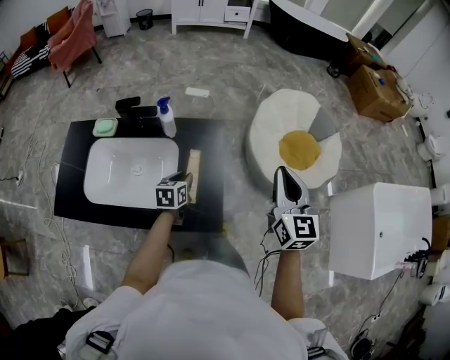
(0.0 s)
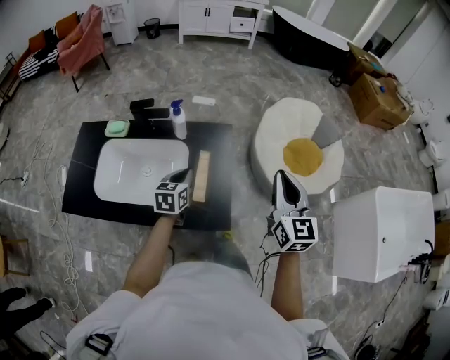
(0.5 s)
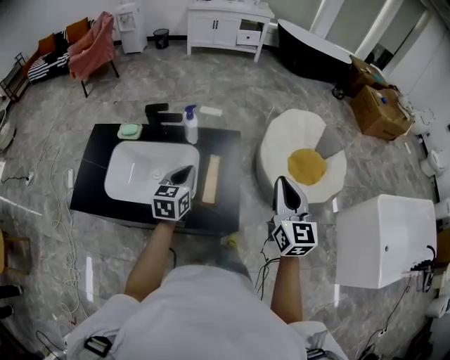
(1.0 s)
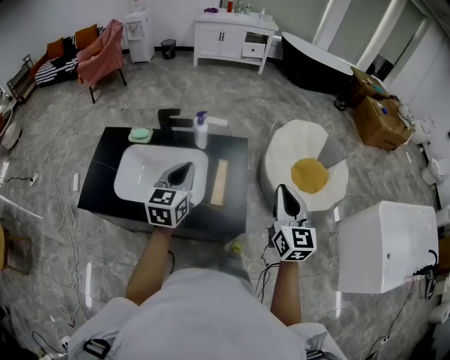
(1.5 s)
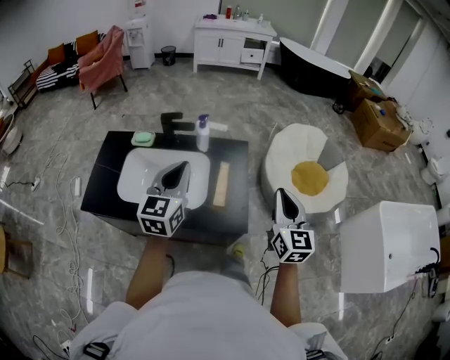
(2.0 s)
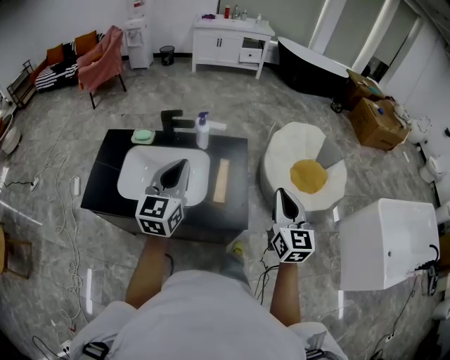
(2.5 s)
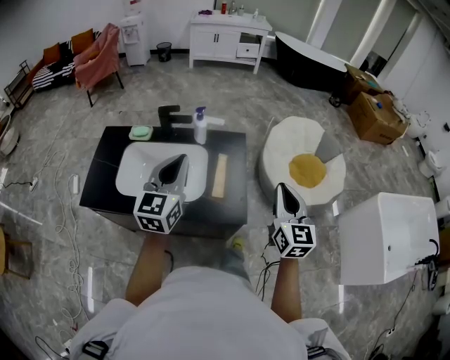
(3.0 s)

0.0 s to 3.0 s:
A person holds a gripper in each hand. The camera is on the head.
0.0 to 1.5 s: The right gripper travels backward and to the left by about 15 cm; the left gripper goes about 30 cm upward and backward, changes its angle by some 30 degrees, and closes its fingers.
1.5 to 3.0 s: The left gripper moves upward and backward, some 10 cm.

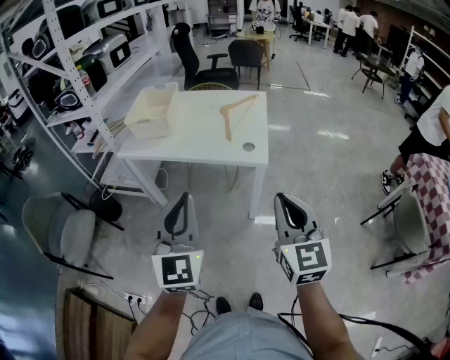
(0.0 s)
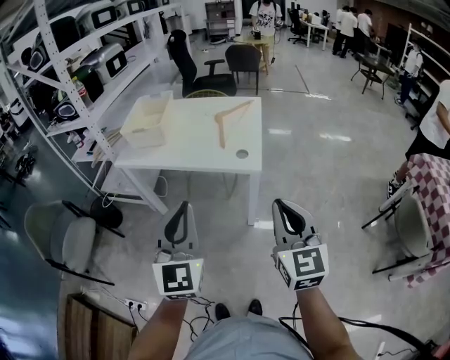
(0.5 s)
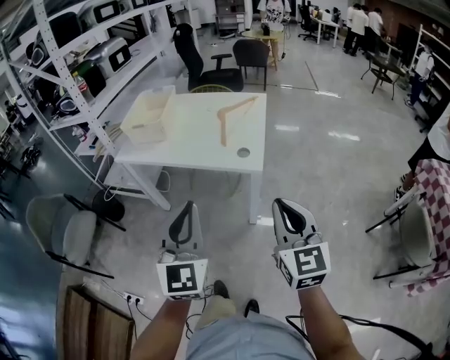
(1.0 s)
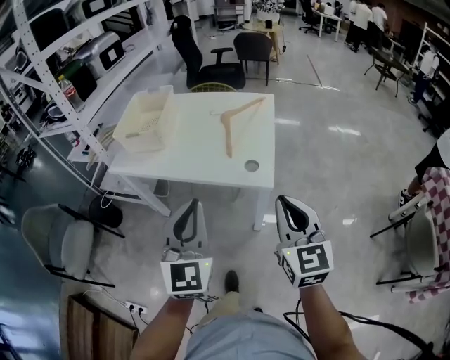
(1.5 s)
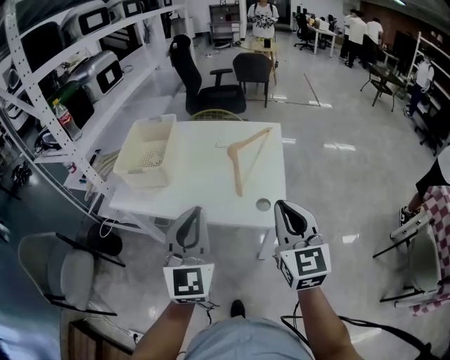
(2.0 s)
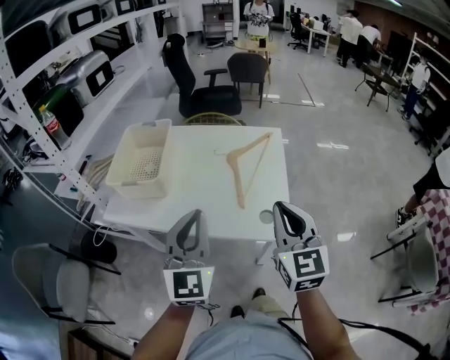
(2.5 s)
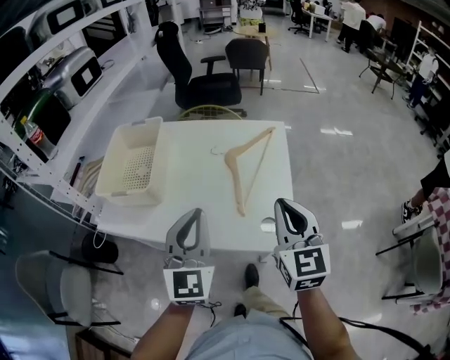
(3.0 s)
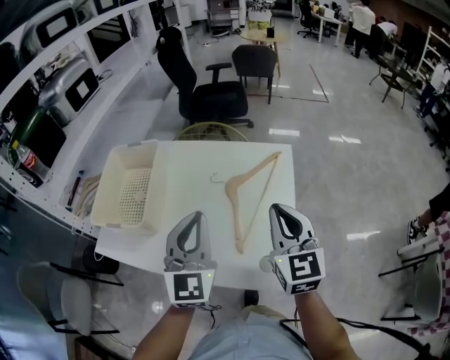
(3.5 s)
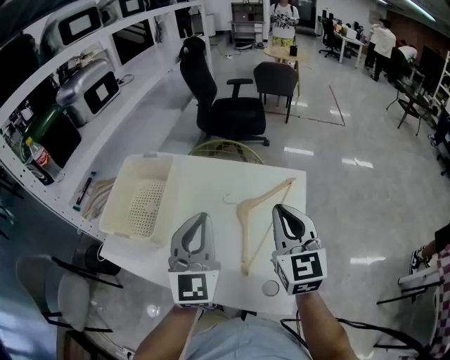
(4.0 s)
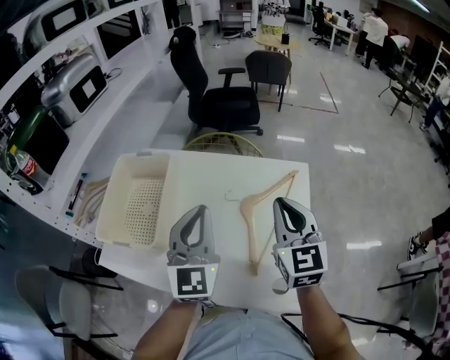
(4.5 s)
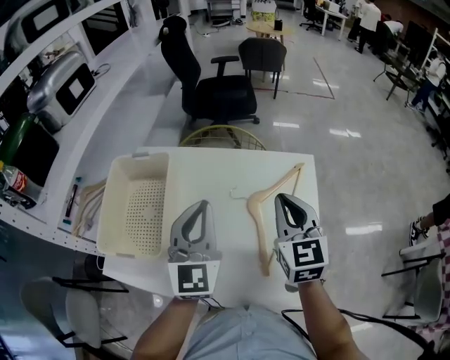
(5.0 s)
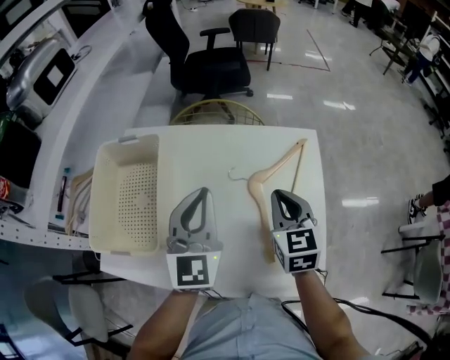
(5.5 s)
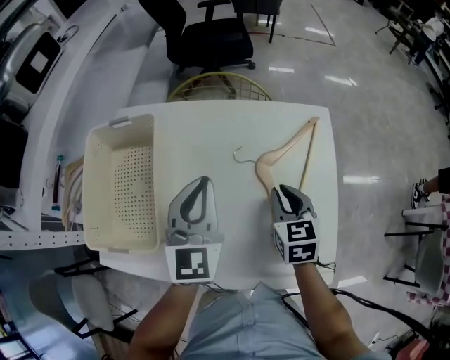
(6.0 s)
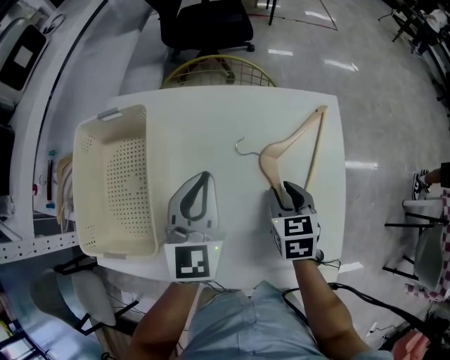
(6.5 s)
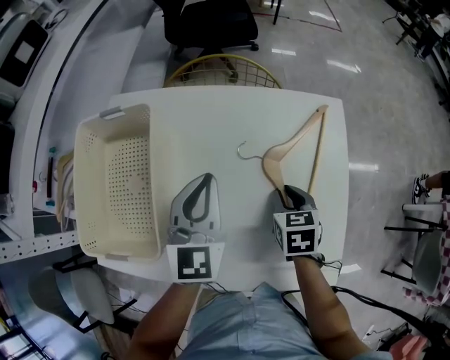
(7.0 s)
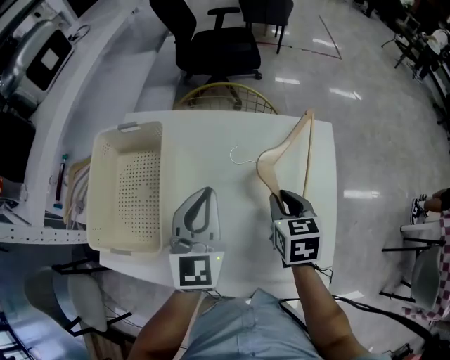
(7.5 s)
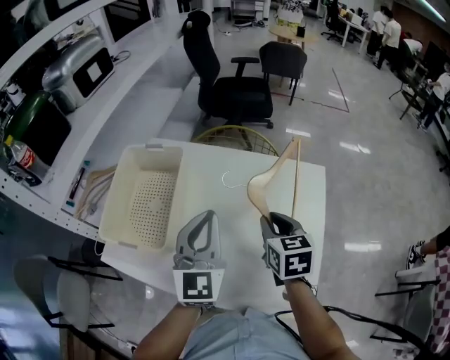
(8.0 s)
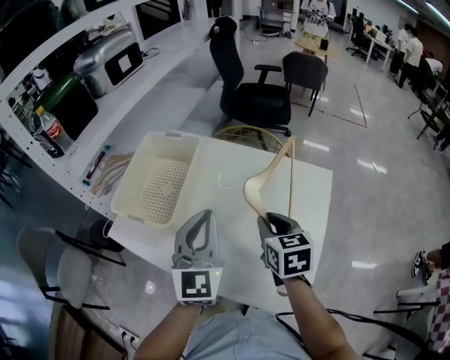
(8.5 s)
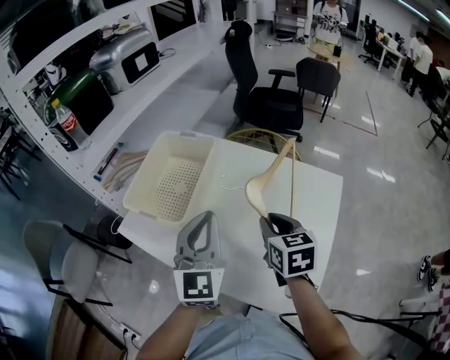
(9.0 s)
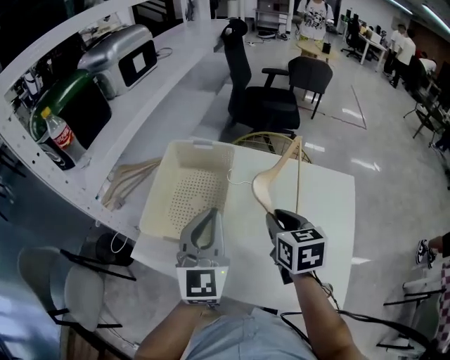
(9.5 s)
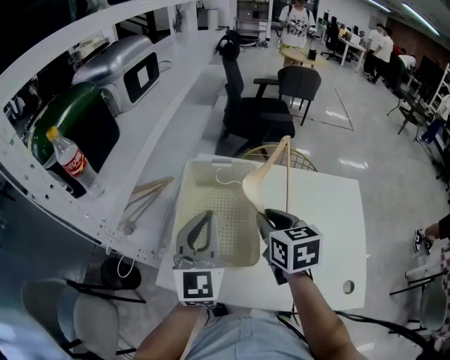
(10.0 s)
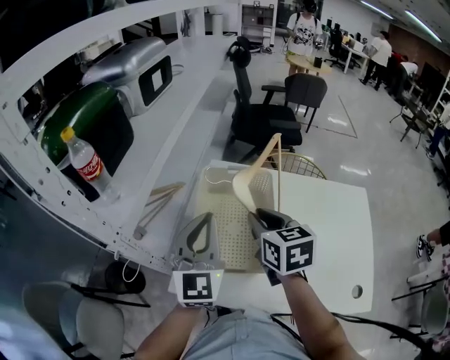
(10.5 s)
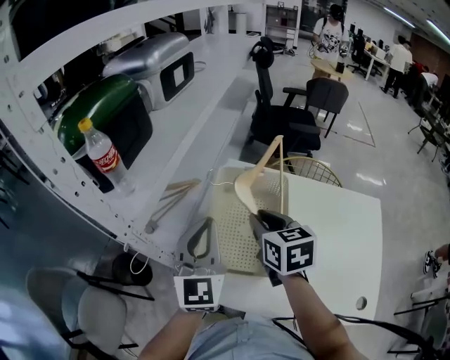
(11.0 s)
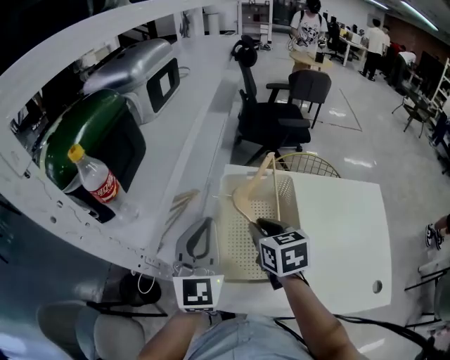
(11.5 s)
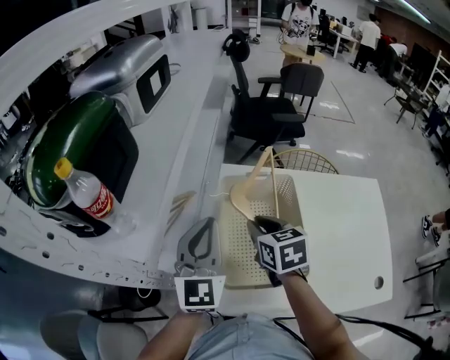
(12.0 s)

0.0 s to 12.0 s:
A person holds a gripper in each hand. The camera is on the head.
0.0 to 2.0 s: The two grippers go about 25 cm forward.
2.0 to 4.0 s: Both grippers travel together forward, about 30 cm.
4.0 to 6.0 s: The right gripper goes some 20 cm downward, and points its fingers roughly 30 degrees further downward, while the left gripper travels downward, forward and to the left by roughly 15 cm.
6.0 to 8.0 s: Both grippers move upward, about 5 cm.
8.0 to 10.0 s: Both grippers move to the left, about 25 cm.
10.0 to 12.0 s: The grippers both shift to the left and forward by about 15 cm.

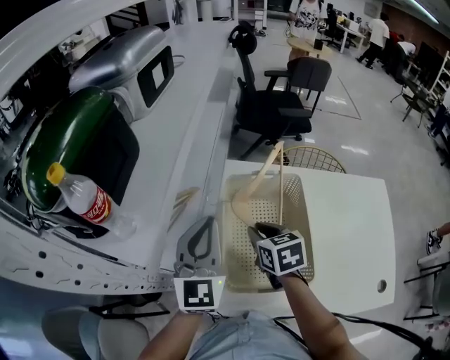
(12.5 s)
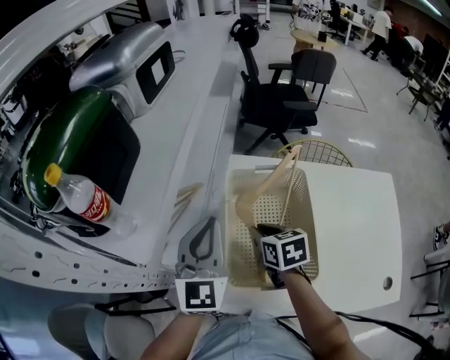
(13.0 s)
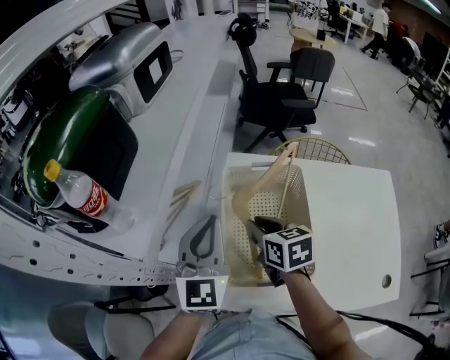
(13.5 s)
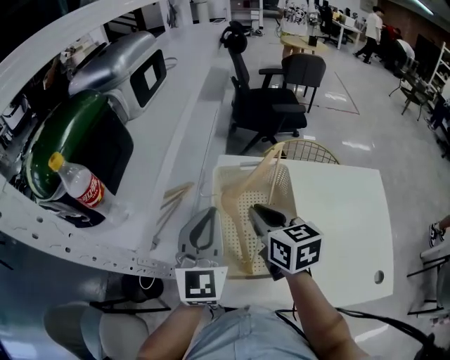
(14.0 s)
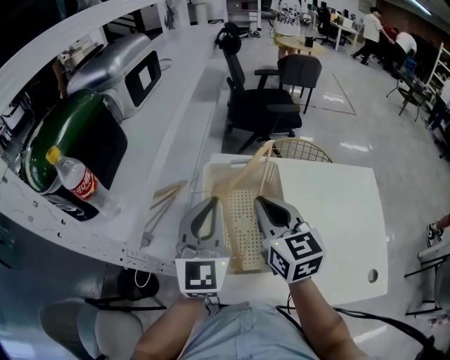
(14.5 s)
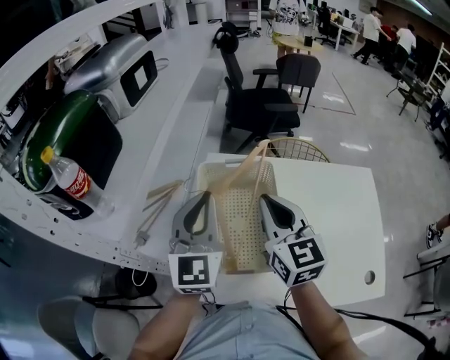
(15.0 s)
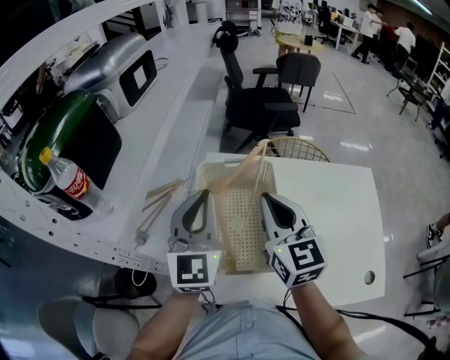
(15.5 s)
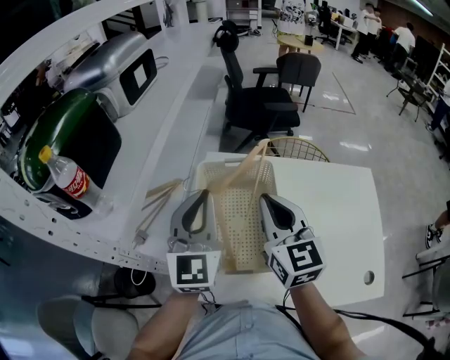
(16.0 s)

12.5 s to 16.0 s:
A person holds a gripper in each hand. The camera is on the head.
12.5 to 14.5 s: The right gripper shifts approximately 15 cm upward and to the right, and swivels some 30 degrees, while the left gripper moves to the right, roughly 5 cm.
14.5 to 16.0 s: There are only small adjustments of the grippers.

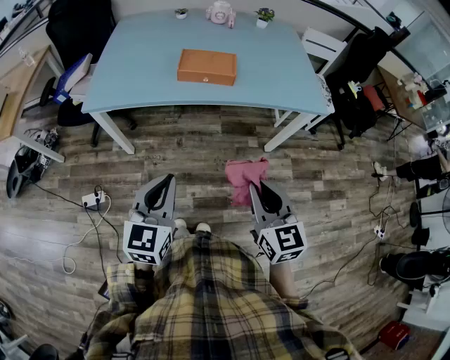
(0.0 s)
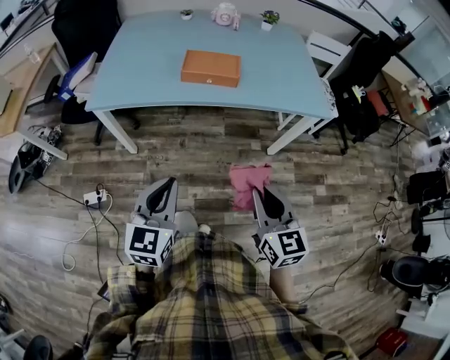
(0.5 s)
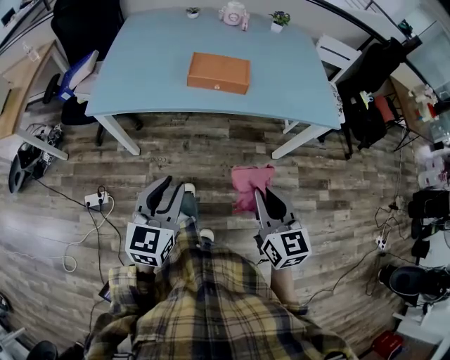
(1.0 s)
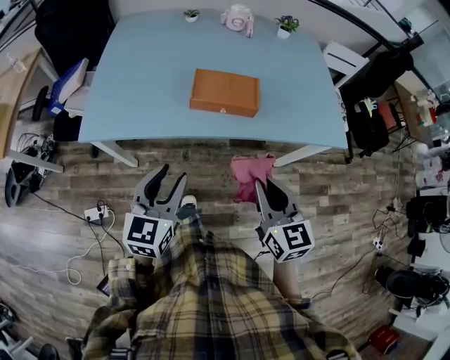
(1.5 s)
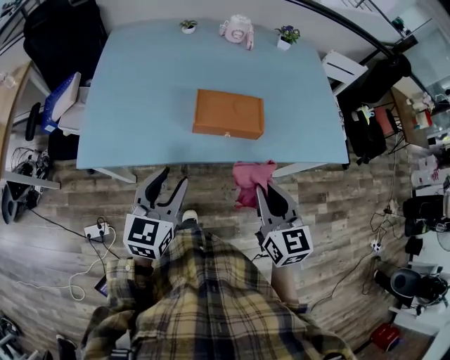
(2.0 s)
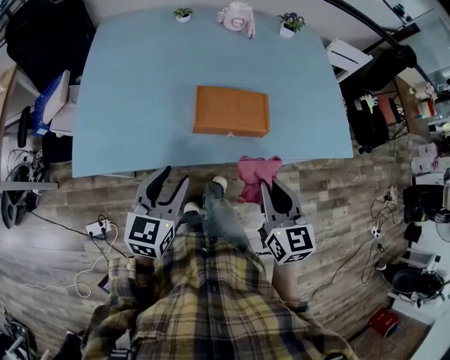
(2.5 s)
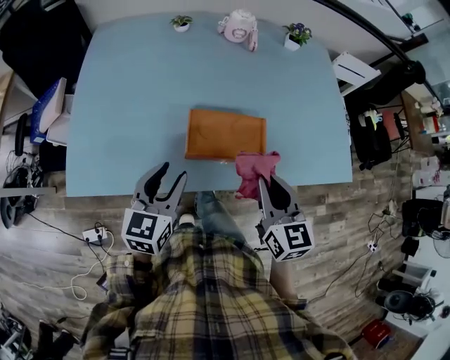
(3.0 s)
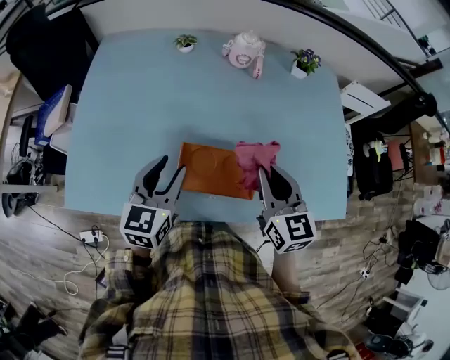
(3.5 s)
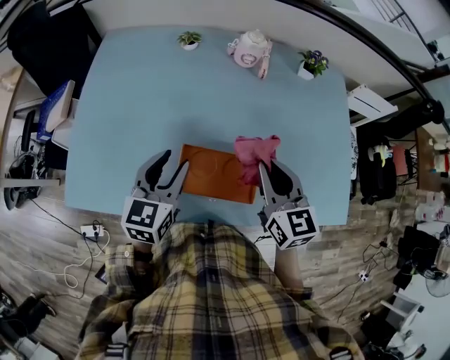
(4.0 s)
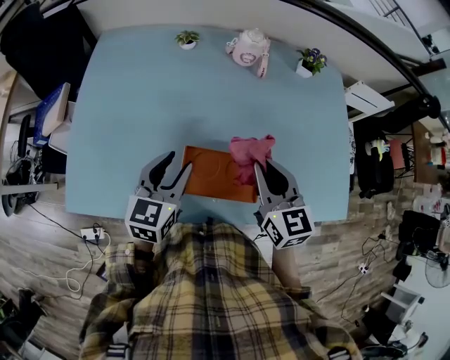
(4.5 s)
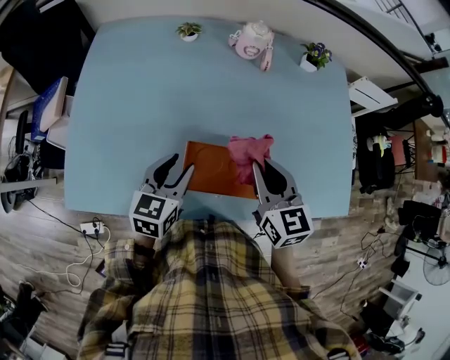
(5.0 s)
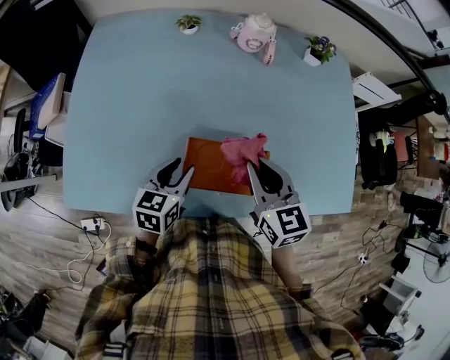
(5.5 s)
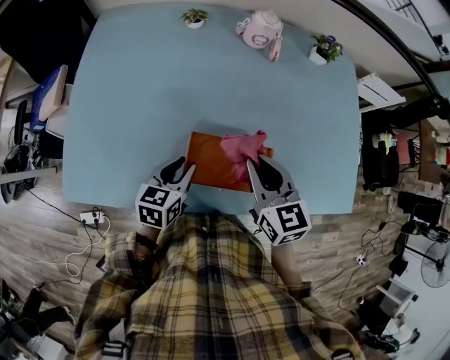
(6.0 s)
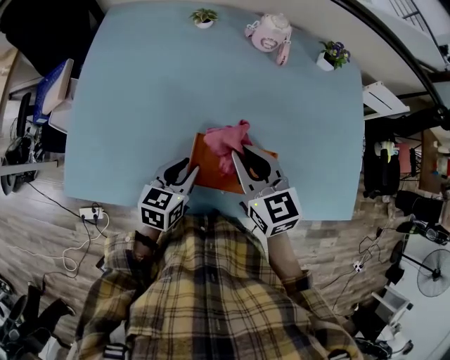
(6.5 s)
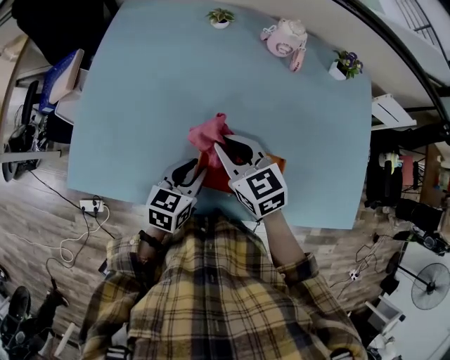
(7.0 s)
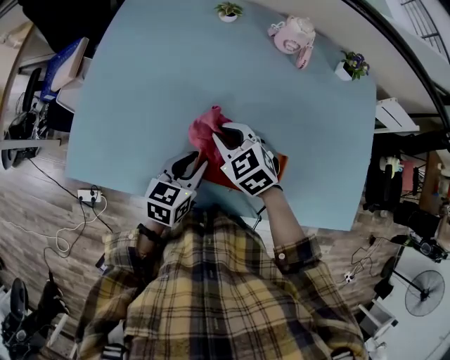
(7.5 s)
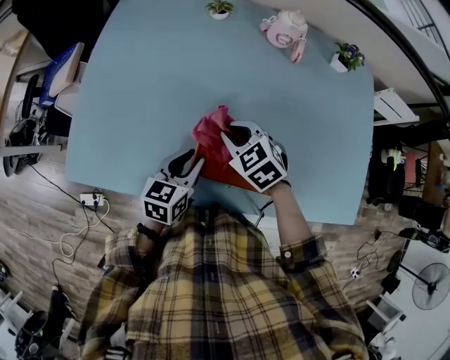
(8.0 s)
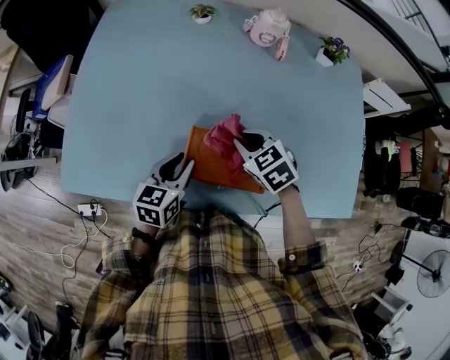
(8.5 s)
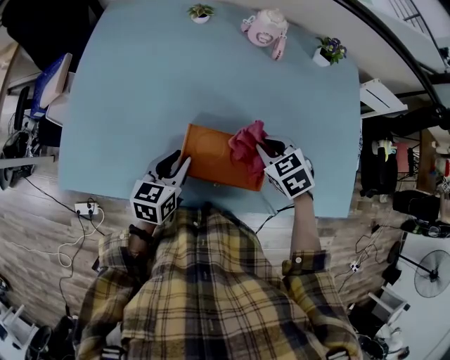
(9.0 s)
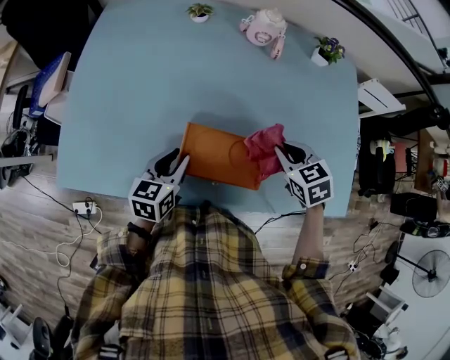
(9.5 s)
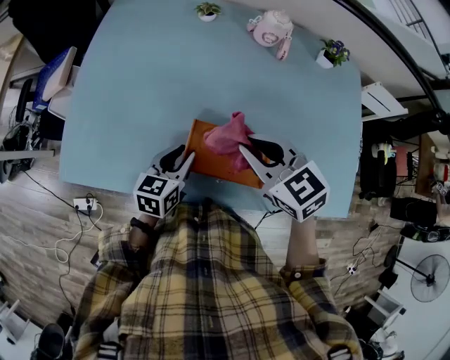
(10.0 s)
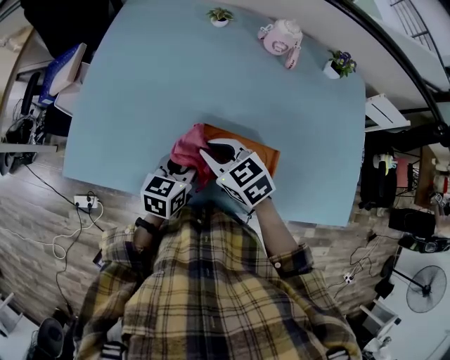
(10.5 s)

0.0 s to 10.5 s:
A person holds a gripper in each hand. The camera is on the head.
0.0 to 2.0 s: The two grippers go approximately 25 cm forward. The left gripper opens its fingers.
2.0 to 4.0 s: The two grippers go roughly 30 cm forward.
4.0 to 6.5 s: The left gripper moves downward, approximately 15 cm. Meanwhile the right gripper shifts about 10 cm to the left.
6.5 to 8.5 s: The right gripper goes roughly 10 cm downward, and swivels some 30 degrees.
8.5 to 10.5 s: The right gripper shifts some 10 cm to the left.
